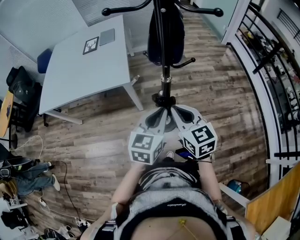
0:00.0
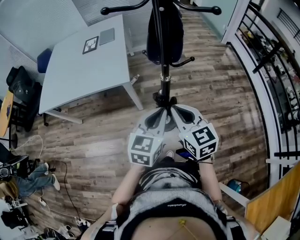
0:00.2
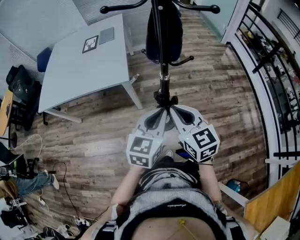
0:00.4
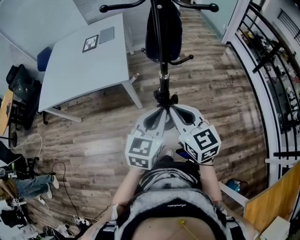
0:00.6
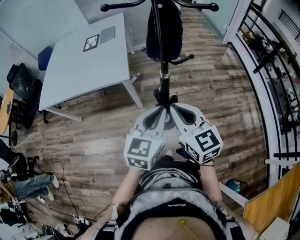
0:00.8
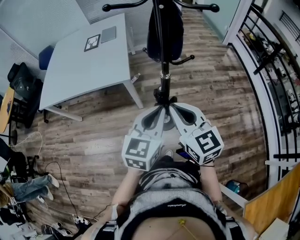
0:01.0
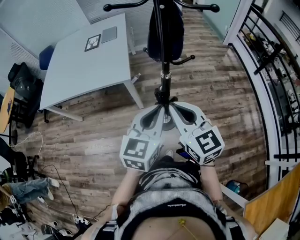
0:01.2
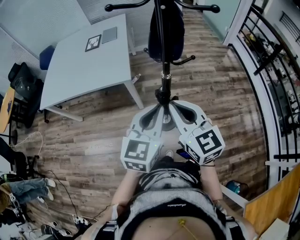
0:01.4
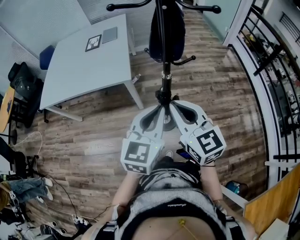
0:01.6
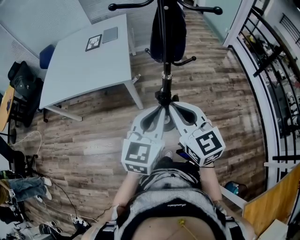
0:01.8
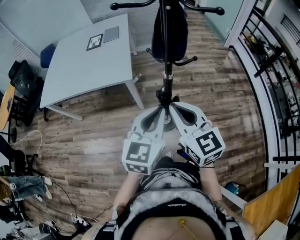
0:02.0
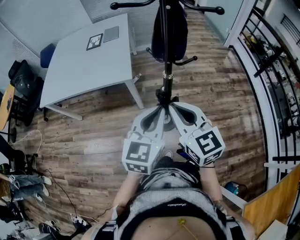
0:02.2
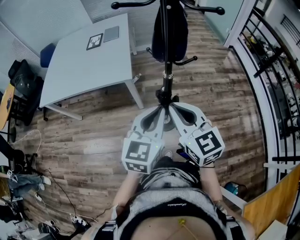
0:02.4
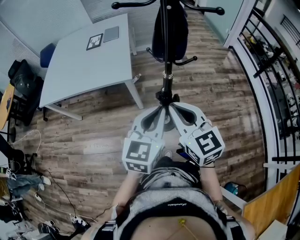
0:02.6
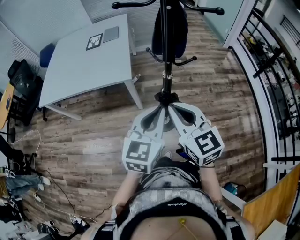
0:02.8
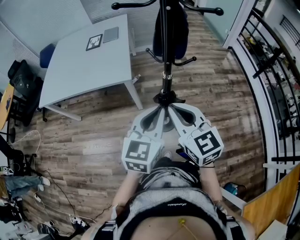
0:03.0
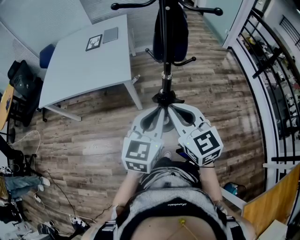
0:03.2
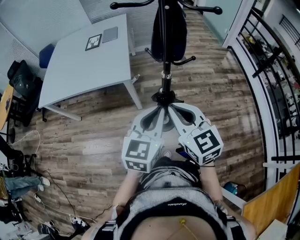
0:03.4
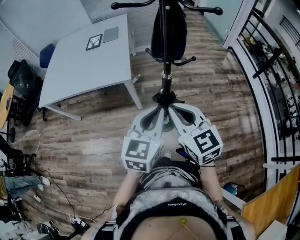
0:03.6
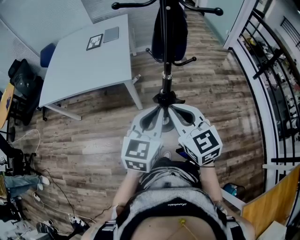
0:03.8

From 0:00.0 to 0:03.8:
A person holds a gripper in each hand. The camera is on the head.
From 0:00.0 to 0:01.2: The two grippers go about 5 cm upward.
From 0:01.2 to 0:02.6: The grippers move only a little.
From 0:02.6 to 0:03.8: Neither gripper changes place.

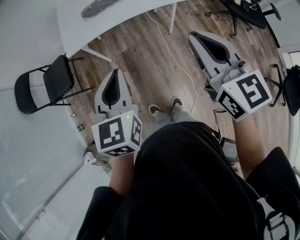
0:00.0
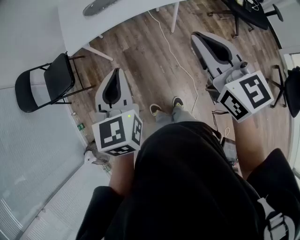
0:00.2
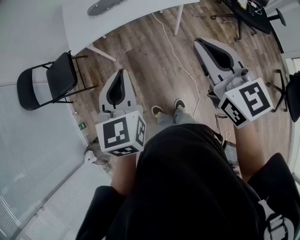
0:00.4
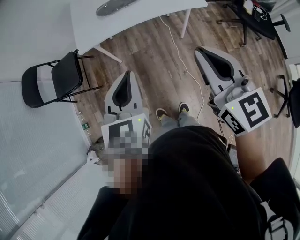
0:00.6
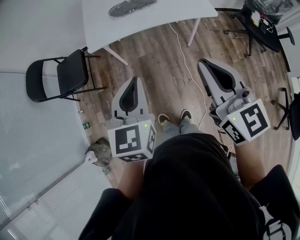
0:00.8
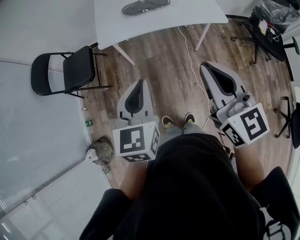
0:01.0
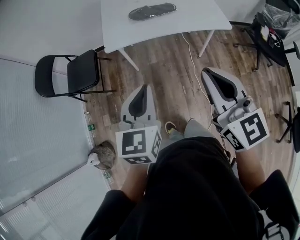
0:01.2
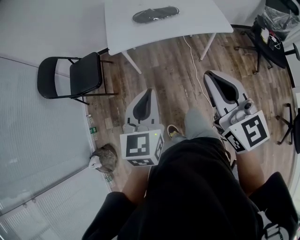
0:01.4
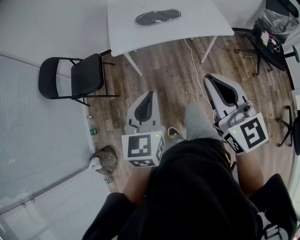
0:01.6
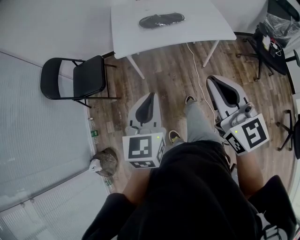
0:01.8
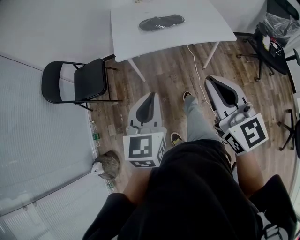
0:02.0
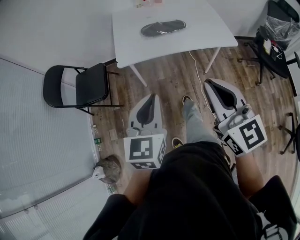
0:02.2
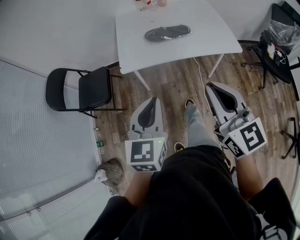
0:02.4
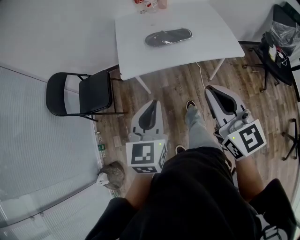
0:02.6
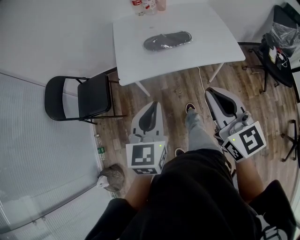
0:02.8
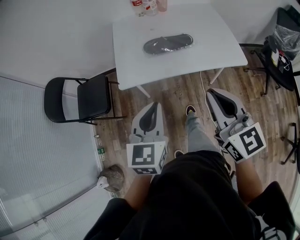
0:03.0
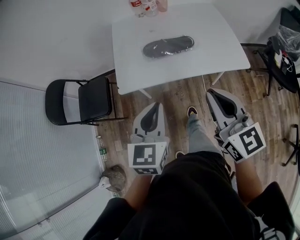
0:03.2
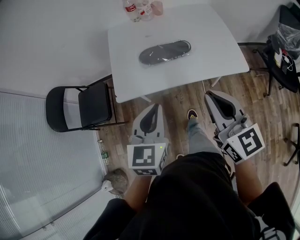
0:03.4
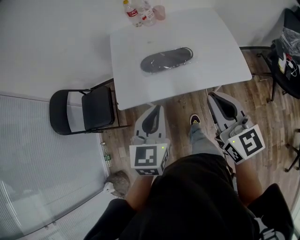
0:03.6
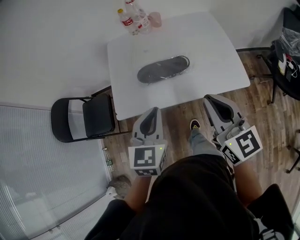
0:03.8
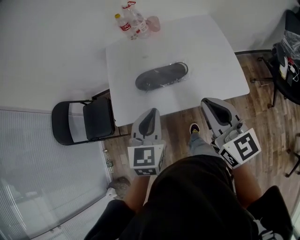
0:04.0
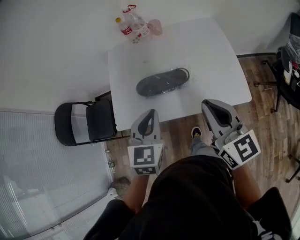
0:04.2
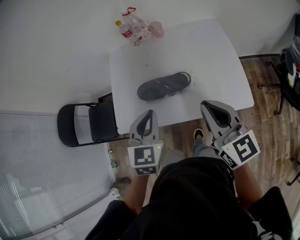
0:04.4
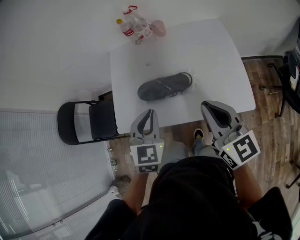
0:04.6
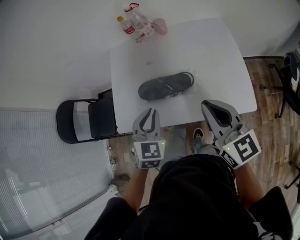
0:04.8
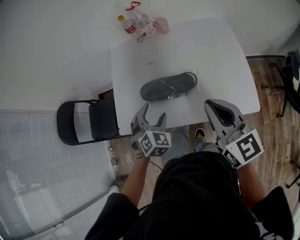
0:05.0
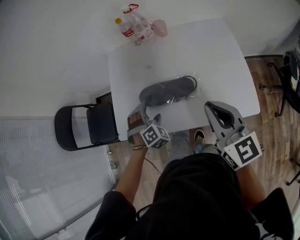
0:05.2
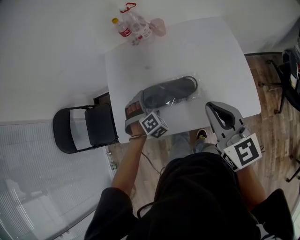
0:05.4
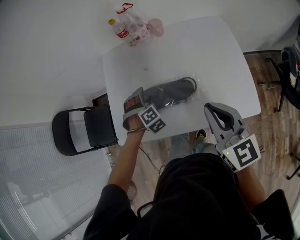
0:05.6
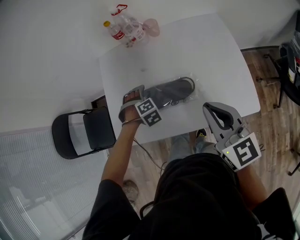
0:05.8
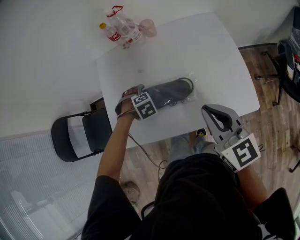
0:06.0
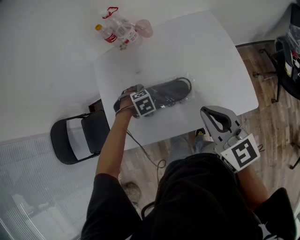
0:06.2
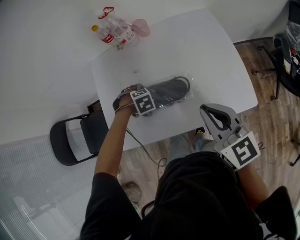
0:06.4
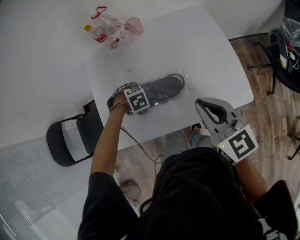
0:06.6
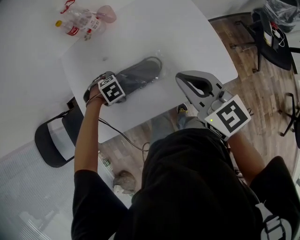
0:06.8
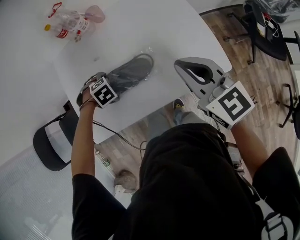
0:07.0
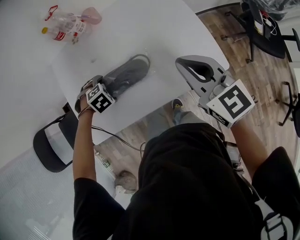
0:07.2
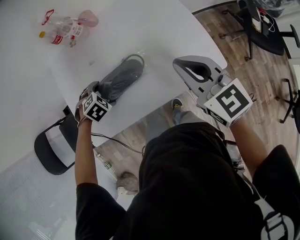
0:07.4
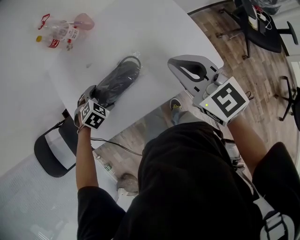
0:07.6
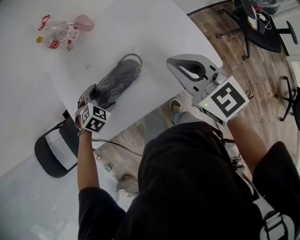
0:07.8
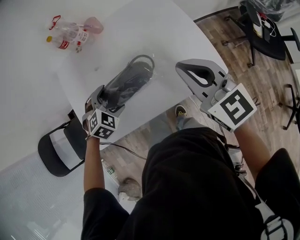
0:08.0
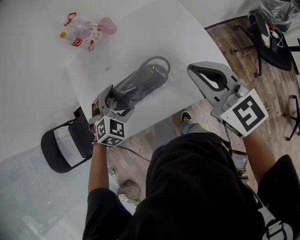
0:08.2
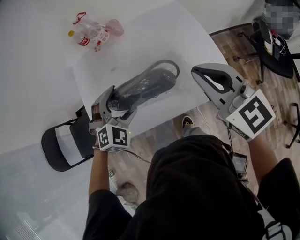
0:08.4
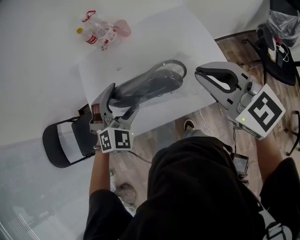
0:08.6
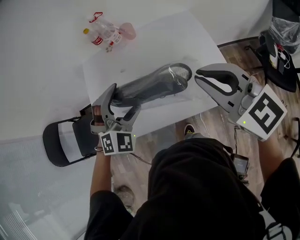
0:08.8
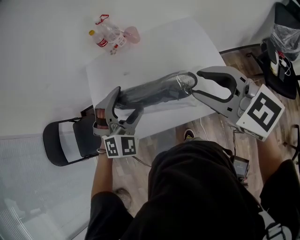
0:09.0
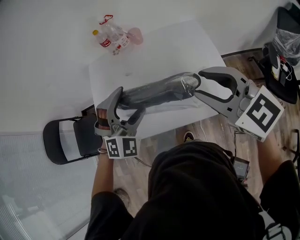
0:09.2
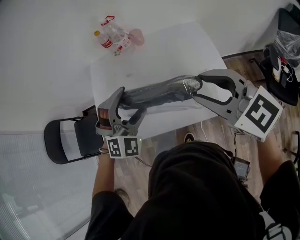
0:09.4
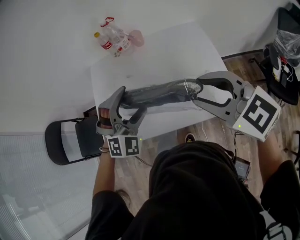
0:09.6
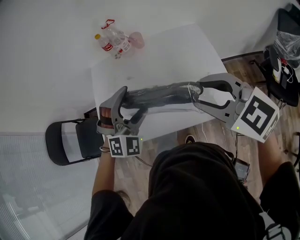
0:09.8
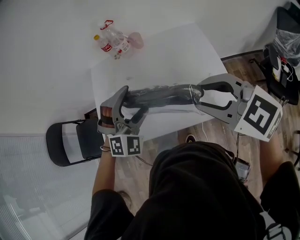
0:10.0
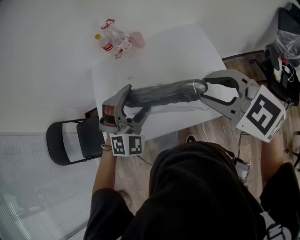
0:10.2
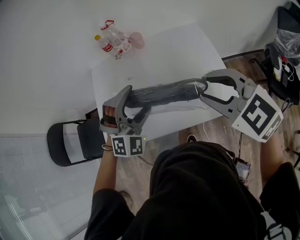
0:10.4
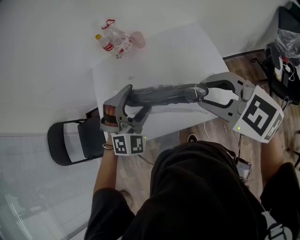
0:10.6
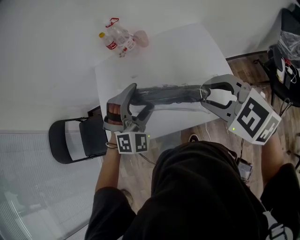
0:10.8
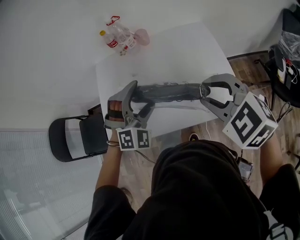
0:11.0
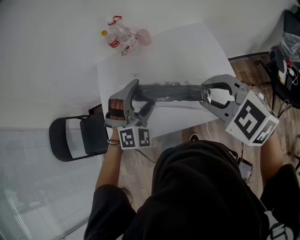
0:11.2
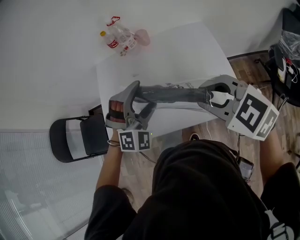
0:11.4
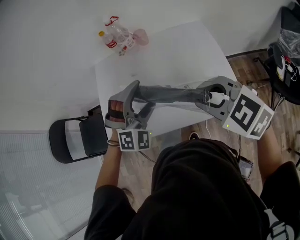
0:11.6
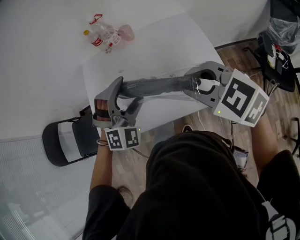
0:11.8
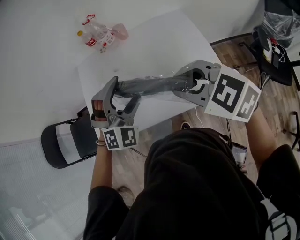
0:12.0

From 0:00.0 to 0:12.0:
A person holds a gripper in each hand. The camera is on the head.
From 0:00.0 to 0:01.6: Both grippers travel together to the left, about 15 cm.
From 0:01.6 to 0:03.0: The two grippers go approximately 15 cm forward.
From 0:03.0 to 0:04.4: The grippers both shift forward and to the right by roughly 25 cm.
From 0:04.4 to 0:06.0: The left gripper travels downward by roughly 25 cm, angles its fingers downward, by approximately 60 degrees, and opens, while the right gripper ends up roughly 10 cm from where it was.
From 0:06.0 to 0:07.6: The right gripper changes place by some 10 cm.
From 0:07.6 to 0:09.0: The right gripper heads upward, covering about 10 cm, rotates some 30 degrees, and opens its fingers. Meanwhile the left gripper shifts roughly 25 cm upward, and points its fingers about 50 degrees further upward.
From 0:09.0 to 0:10.4: There are only small adjustments of the grippers.
From 0:10.4 to 0:12.0: The right gripper ends up some 5 cm from where it was.

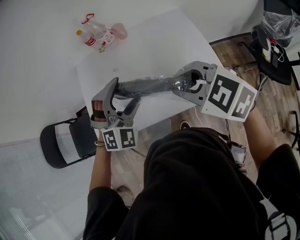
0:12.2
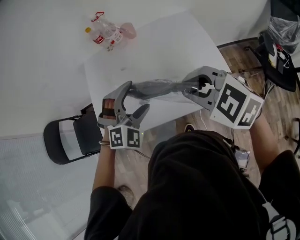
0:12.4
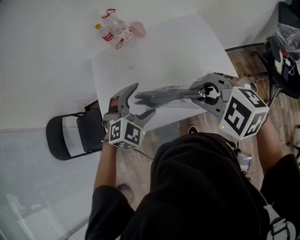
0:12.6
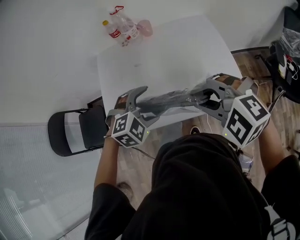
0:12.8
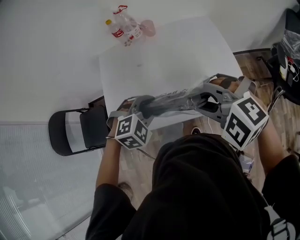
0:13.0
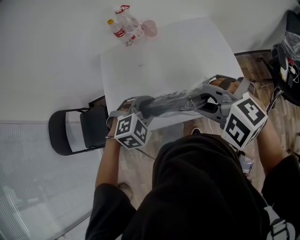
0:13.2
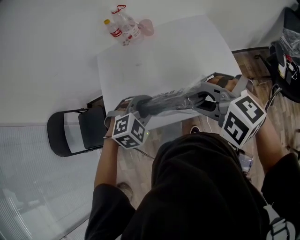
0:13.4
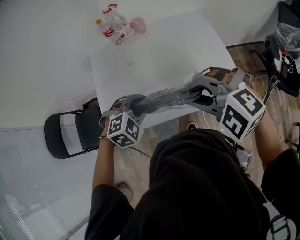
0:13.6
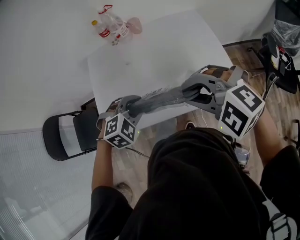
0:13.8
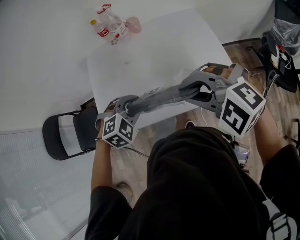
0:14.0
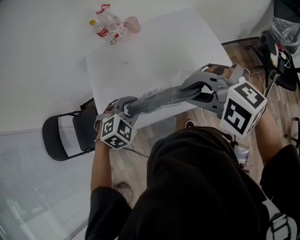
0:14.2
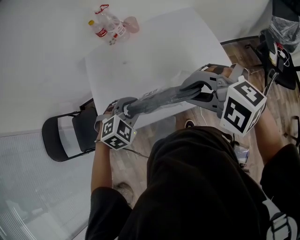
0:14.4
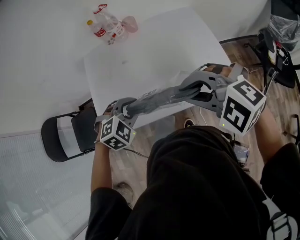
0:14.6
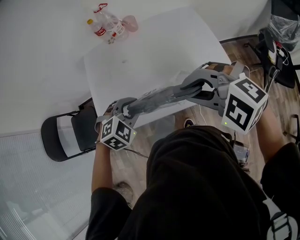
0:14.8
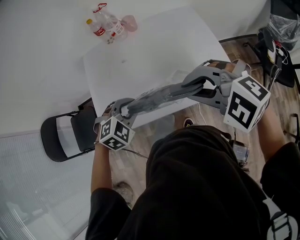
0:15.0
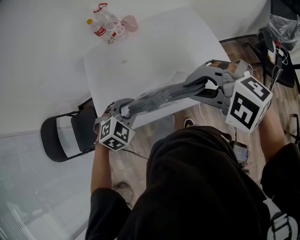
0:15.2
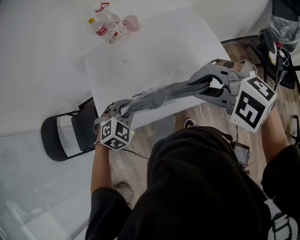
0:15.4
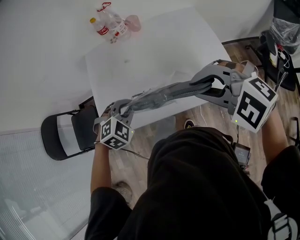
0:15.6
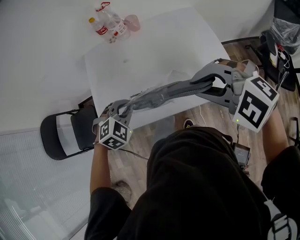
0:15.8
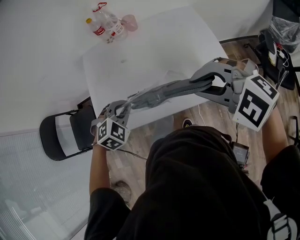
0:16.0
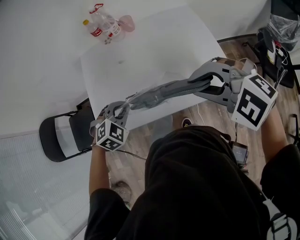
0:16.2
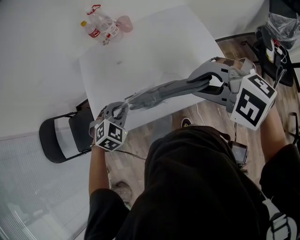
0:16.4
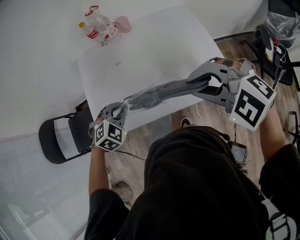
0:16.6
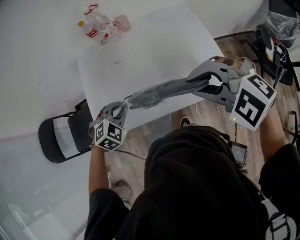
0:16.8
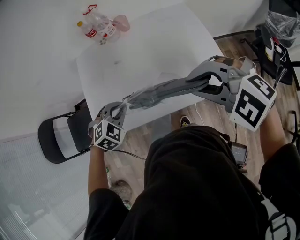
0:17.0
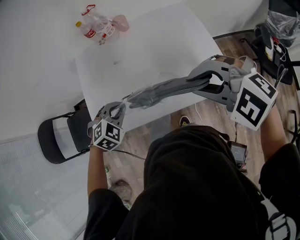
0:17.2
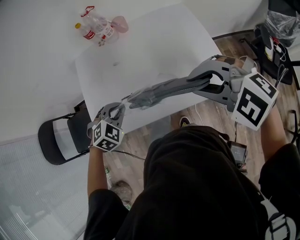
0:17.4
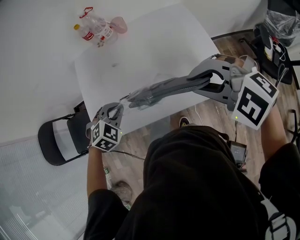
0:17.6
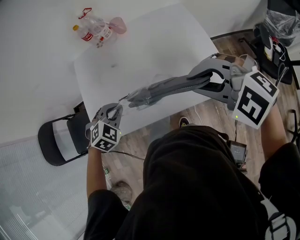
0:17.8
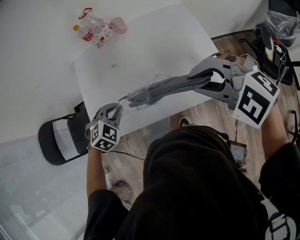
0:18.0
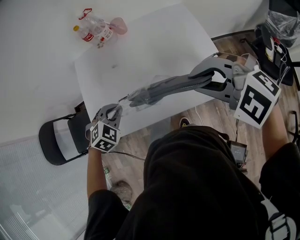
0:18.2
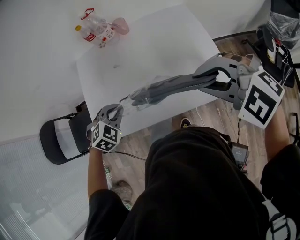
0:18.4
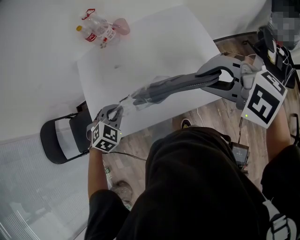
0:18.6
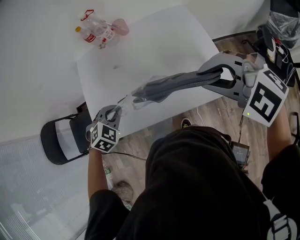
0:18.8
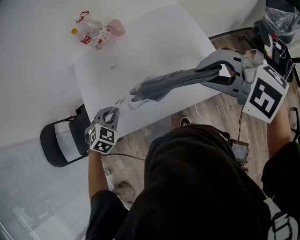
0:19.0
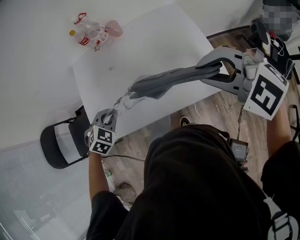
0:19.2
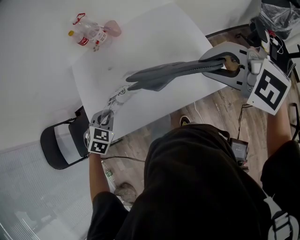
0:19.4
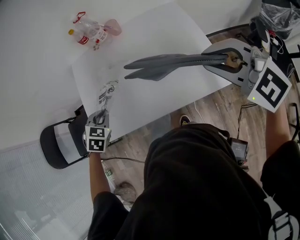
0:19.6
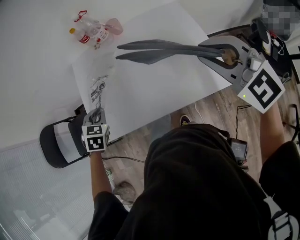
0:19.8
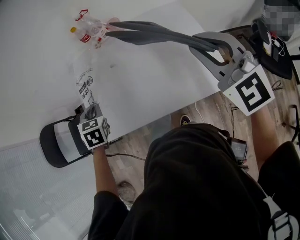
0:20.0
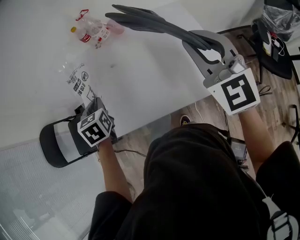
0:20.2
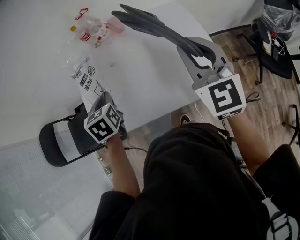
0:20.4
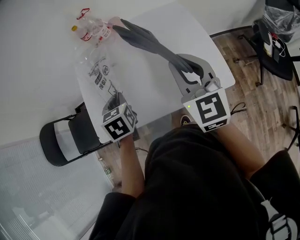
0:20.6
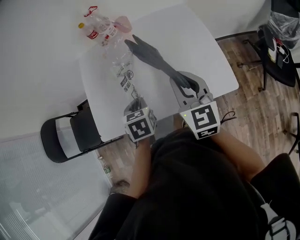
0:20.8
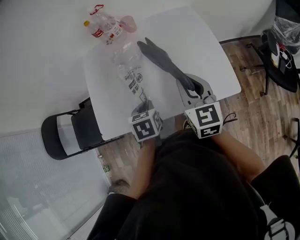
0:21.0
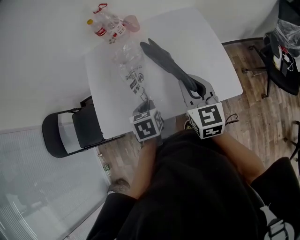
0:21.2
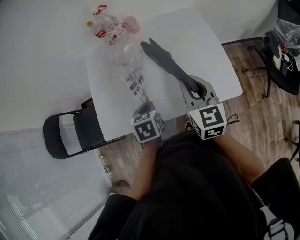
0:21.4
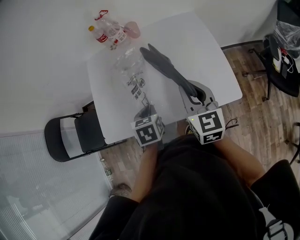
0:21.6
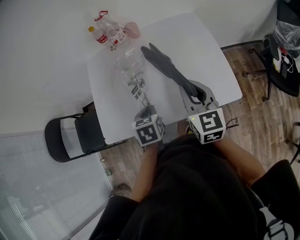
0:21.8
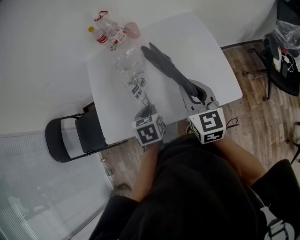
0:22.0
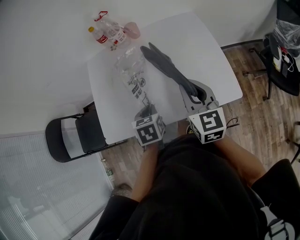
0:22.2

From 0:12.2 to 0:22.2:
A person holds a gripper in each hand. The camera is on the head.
From 0:12.2 to 0:13.6: The left gripper goes some 10 cm downward and to the left, tilts its fingers roughly 30 degrees downward, and closes; the right gripper is displaced to the left by approximately 5 cm, and swivels roughly 30 degrees.
From 0:13.6 to 0:16.4: There are only small adjustments of the grippers.
From 0:16.4 to 0:18.0: There are only small adjustments of the grippers.
From 0:18.0 to 0:19.4: The right gripper changes place by approximately 5 cm.
From 0:19.4 to 0:20.8: The left gripper shifts some 10 cm to the right, and twists about 50 degrees counterclockwise, seen from behind, while the right gripper goes about 15 cm downward, to the left and forward, and swivels about 60 degrees.
From 0:20.8 to 0:22.2: There are only small adjustments of the grippers.
